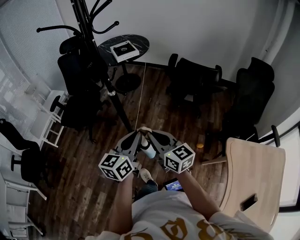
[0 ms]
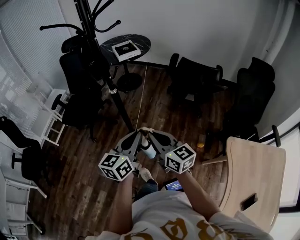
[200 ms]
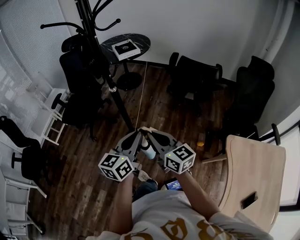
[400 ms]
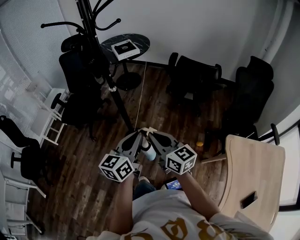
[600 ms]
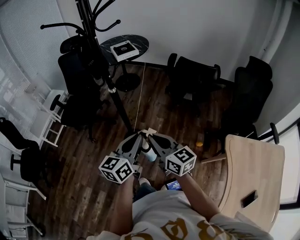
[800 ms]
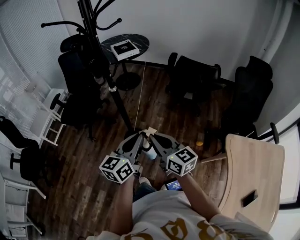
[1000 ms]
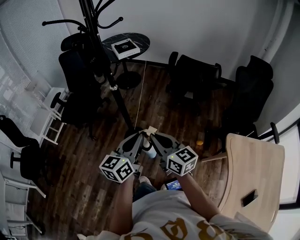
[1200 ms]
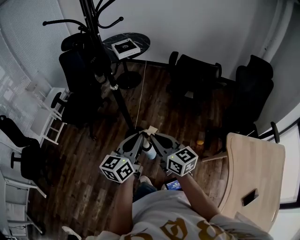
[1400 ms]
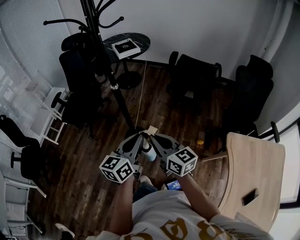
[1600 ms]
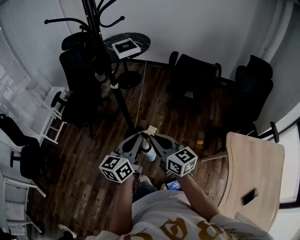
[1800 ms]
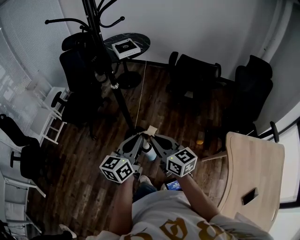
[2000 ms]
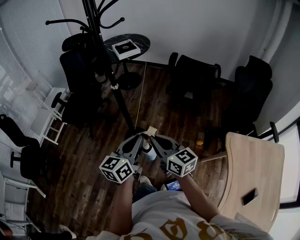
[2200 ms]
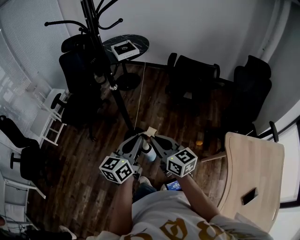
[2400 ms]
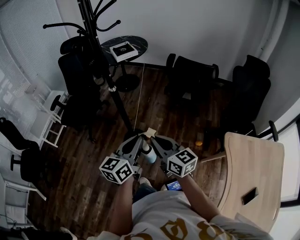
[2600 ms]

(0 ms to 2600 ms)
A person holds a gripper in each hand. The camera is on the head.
0 ms - 1200 ms: The grippers move only a little.
1200 ms - 2600 ms: There are only small adjustments of the grippers.

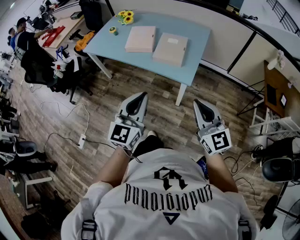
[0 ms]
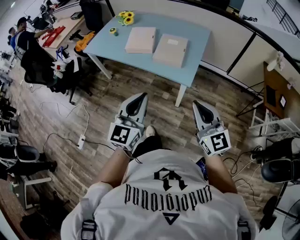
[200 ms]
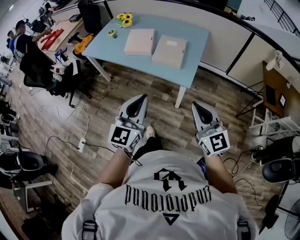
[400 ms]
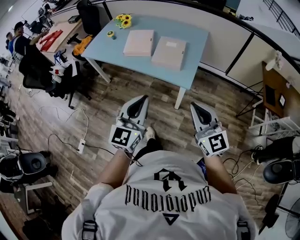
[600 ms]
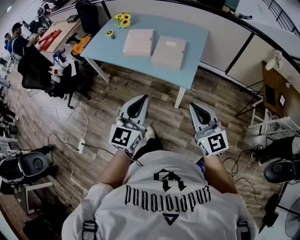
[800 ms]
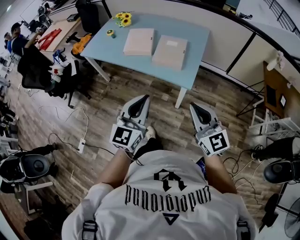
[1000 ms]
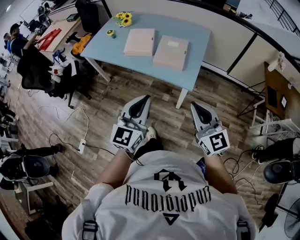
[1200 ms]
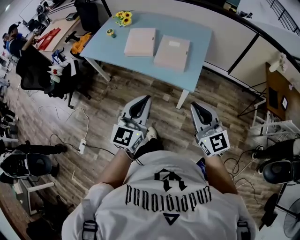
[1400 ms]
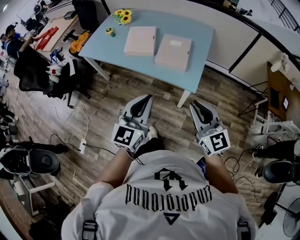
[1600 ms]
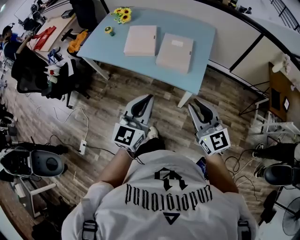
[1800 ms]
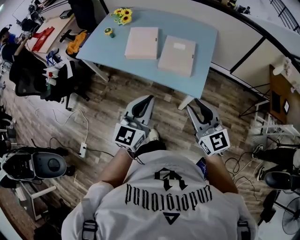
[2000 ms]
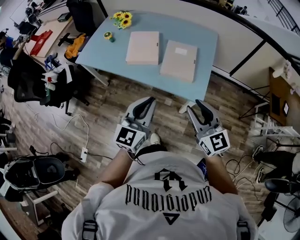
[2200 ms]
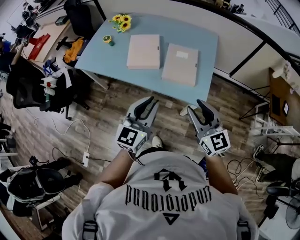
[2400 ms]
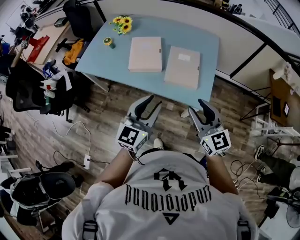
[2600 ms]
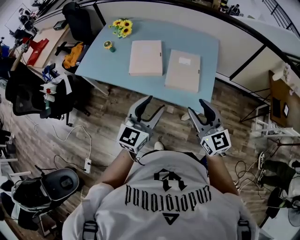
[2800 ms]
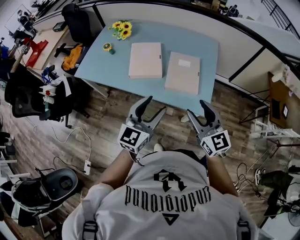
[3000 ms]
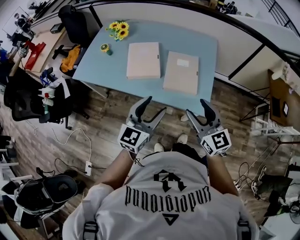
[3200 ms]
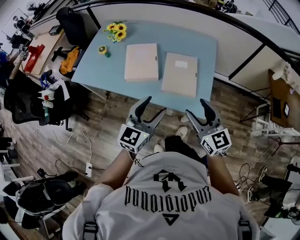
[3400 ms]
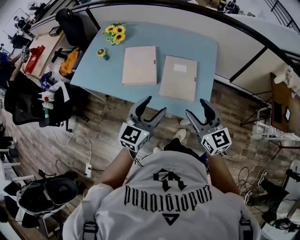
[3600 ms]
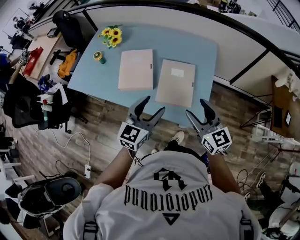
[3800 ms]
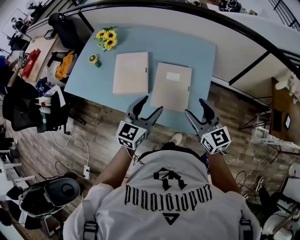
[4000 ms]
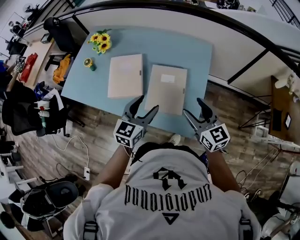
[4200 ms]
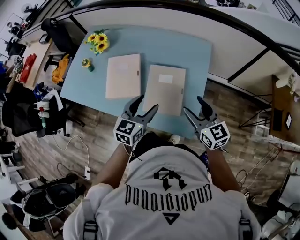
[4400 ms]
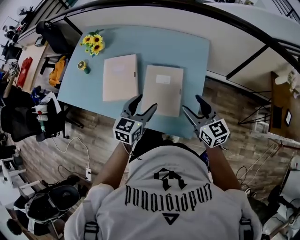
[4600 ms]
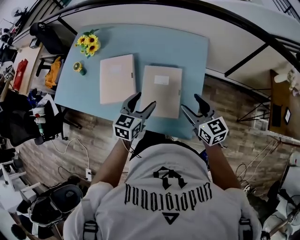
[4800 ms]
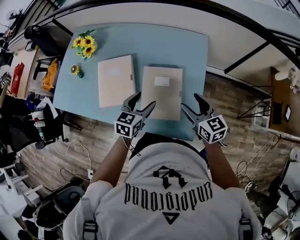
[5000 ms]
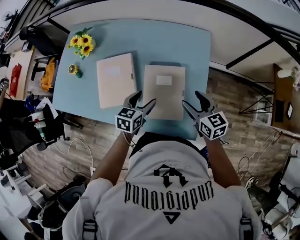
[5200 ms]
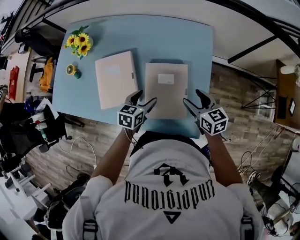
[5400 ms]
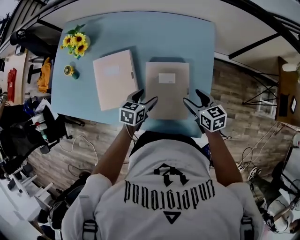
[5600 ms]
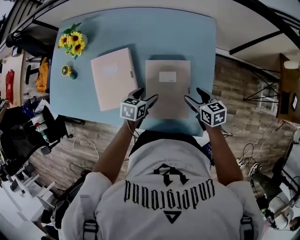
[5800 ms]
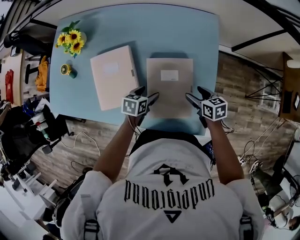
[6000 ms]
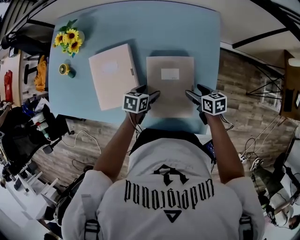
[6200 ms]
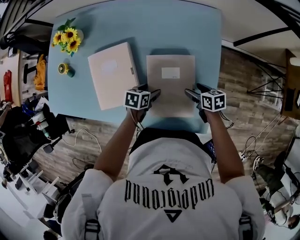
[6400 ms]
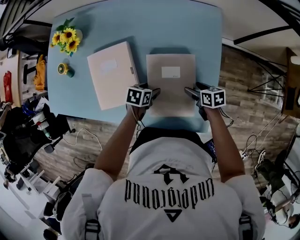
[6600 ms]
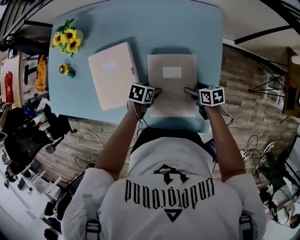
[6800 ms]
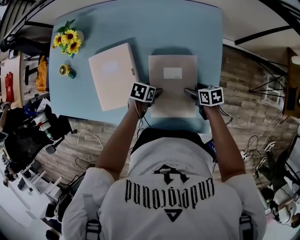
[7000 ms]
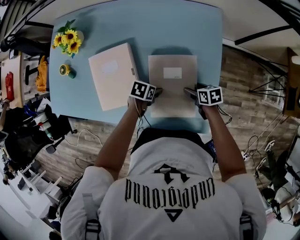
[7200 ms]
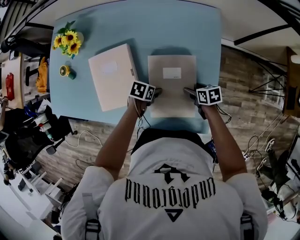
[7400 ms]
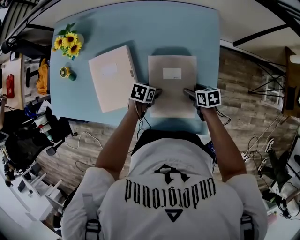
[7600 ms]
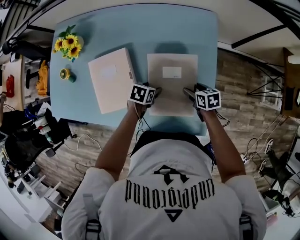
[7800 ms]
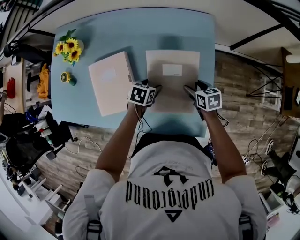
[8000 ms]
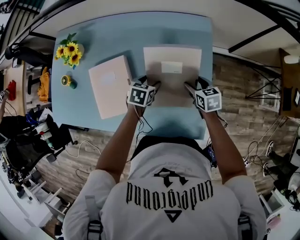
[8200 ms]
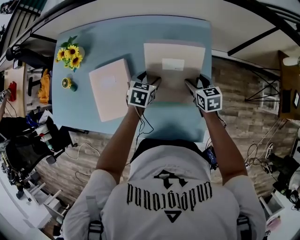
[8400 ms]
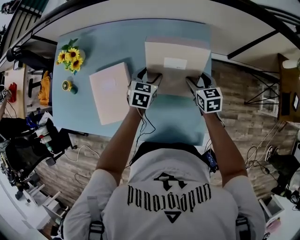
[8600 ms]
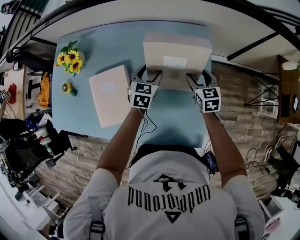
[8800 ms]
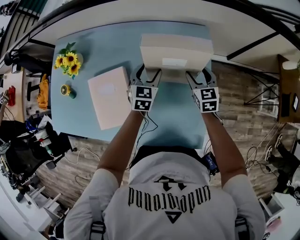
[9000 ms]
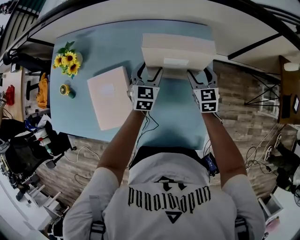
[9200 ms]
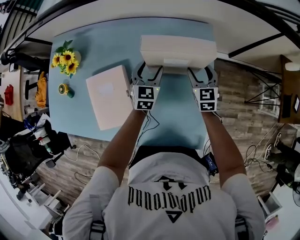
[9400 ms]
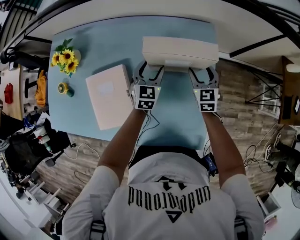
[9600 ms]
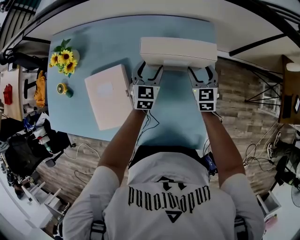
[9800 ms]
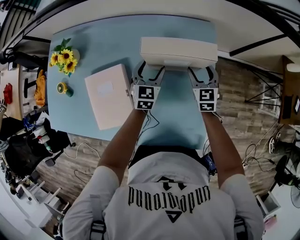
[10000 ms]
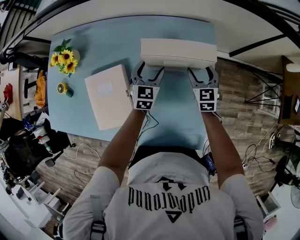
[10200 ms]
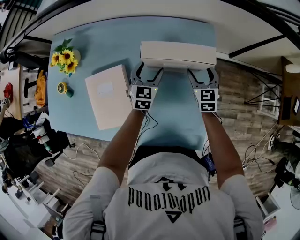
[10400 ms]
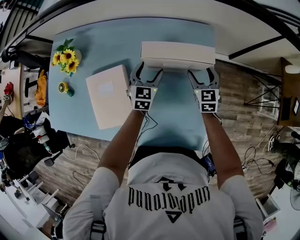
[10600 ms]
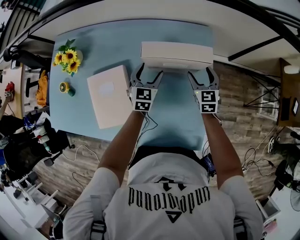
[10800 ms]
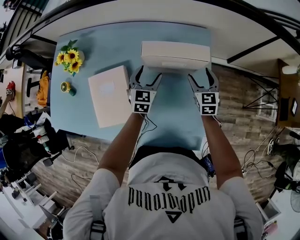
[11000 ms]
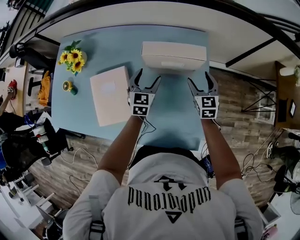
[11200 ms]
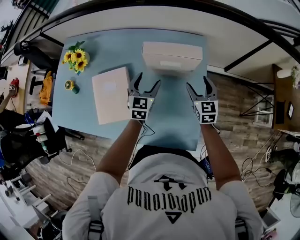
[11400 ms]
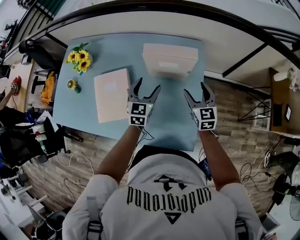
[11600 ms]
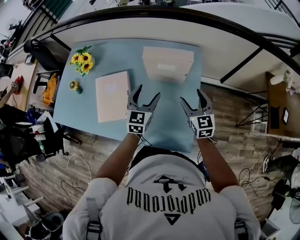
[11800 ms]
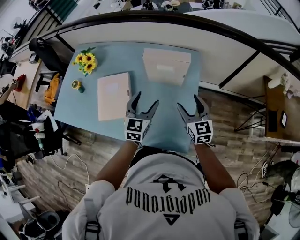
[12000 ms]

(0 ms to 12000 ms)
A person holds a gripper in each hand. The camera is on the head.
0 ms - 1600 ms: Both grippers travel together forward, about 10 cm.
1600 ms - 3000 ms: The two grippers go about 20 cm forward and to the left. The left gripper opens. The right gripper opens.
3000 ms - 4400 ms: The right gripper travels forward and to the right by approximately 25 cm, while the left gripper heads forward, to the right and downward, covering about 25 cm.
4400 ms - 6000 ms: The two grippers go approximately 30 cm downward and forward. The left gripper points its fingers some 30 degrees further downward; the right gripper angles its fingers downward, by roughly 30 degrees.
6000 ms - 7600 ms: The right gripper shifts some 5 cm downward.
7600 ms - 9000 ms: The left gripper changes place by about 25 cm, and angles its fingers upward, by some 30 degrees; the right gripper ends up roughly 25 cm from where it was, and swivels about 50 degrees.
9000 ms - 10400 ms: The grippers make only small movements.
10400 ms - 12000 ms: The two grippers go some 25 cm backward and upward.

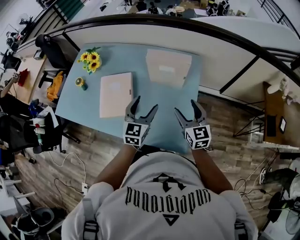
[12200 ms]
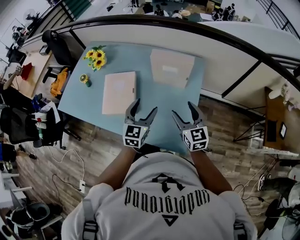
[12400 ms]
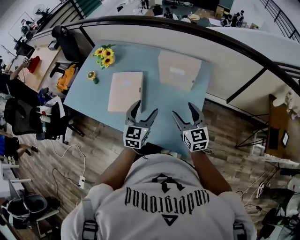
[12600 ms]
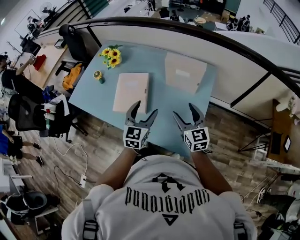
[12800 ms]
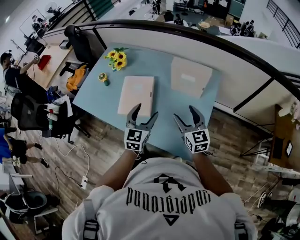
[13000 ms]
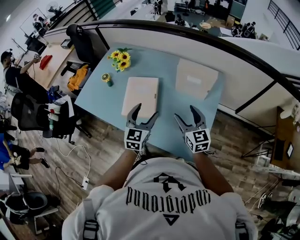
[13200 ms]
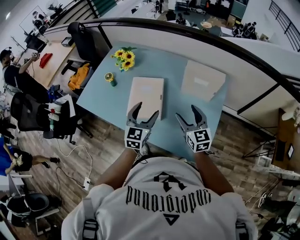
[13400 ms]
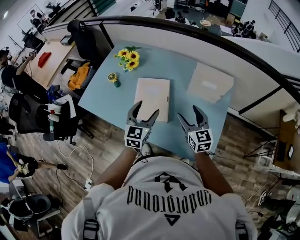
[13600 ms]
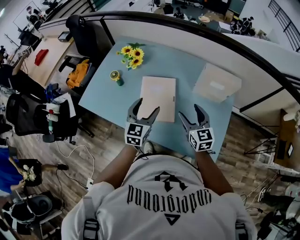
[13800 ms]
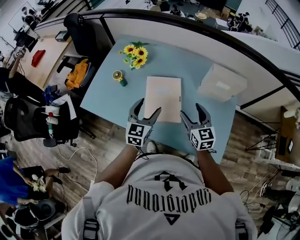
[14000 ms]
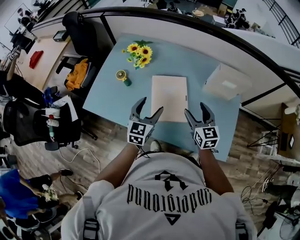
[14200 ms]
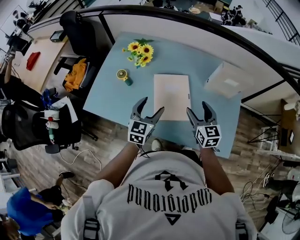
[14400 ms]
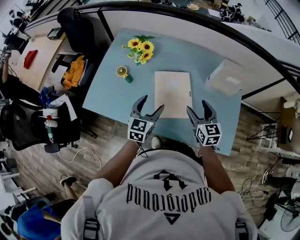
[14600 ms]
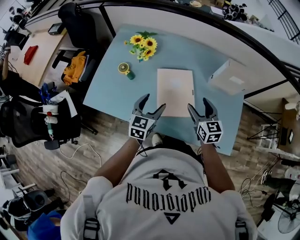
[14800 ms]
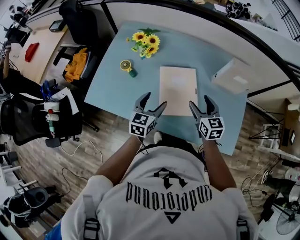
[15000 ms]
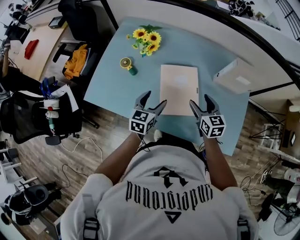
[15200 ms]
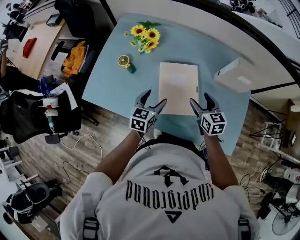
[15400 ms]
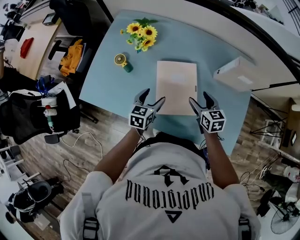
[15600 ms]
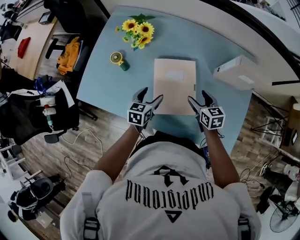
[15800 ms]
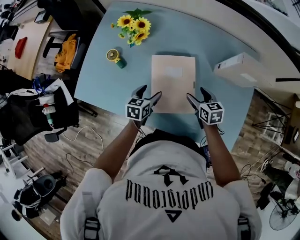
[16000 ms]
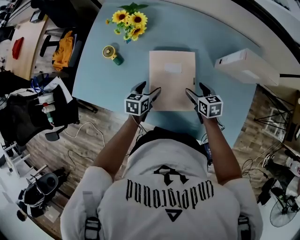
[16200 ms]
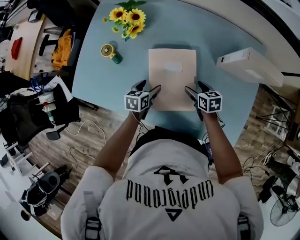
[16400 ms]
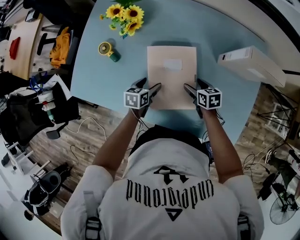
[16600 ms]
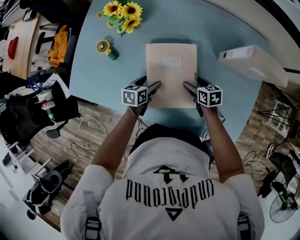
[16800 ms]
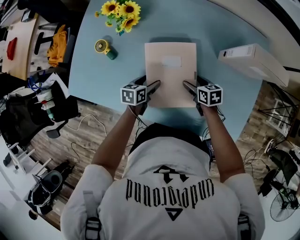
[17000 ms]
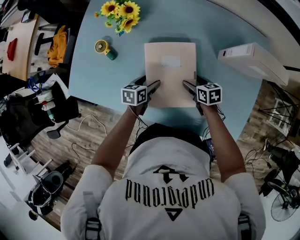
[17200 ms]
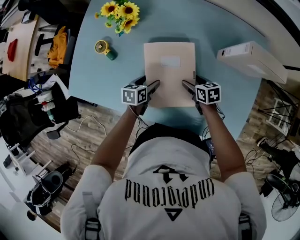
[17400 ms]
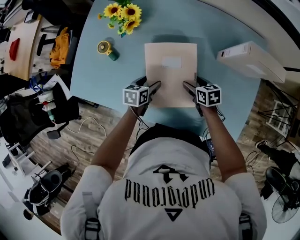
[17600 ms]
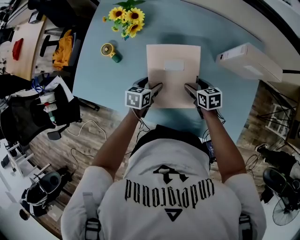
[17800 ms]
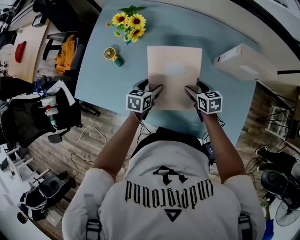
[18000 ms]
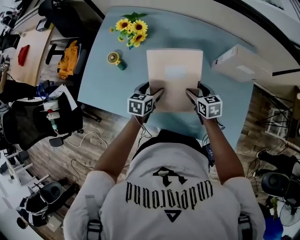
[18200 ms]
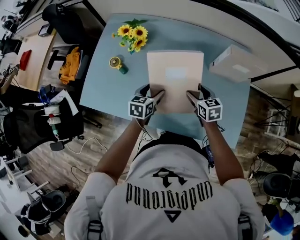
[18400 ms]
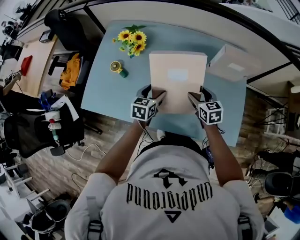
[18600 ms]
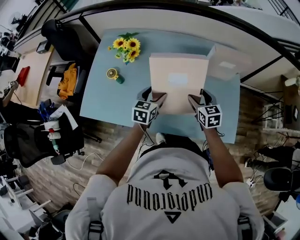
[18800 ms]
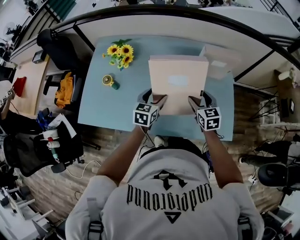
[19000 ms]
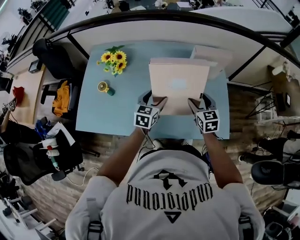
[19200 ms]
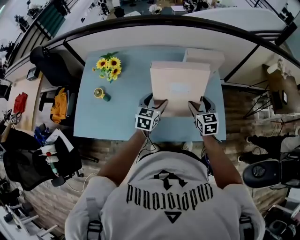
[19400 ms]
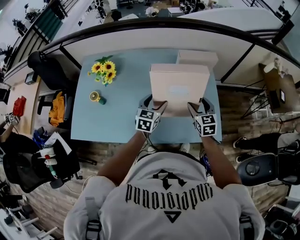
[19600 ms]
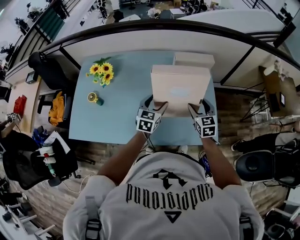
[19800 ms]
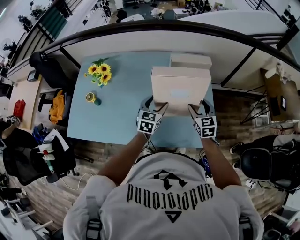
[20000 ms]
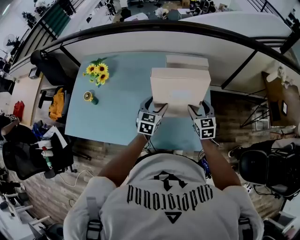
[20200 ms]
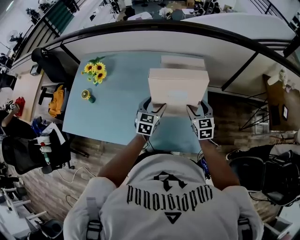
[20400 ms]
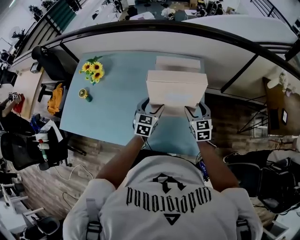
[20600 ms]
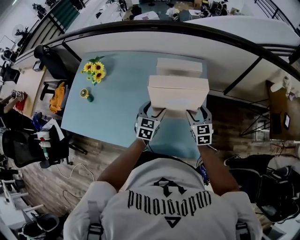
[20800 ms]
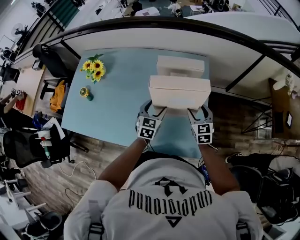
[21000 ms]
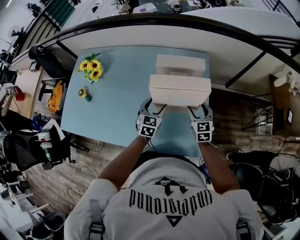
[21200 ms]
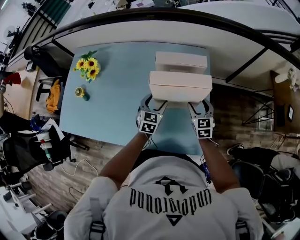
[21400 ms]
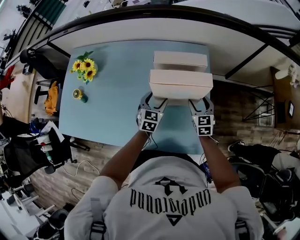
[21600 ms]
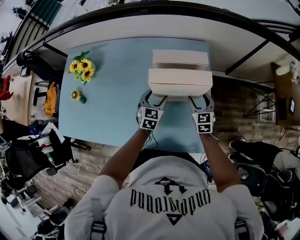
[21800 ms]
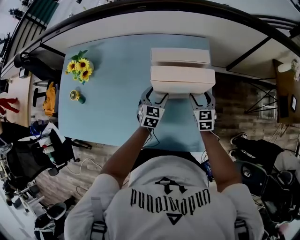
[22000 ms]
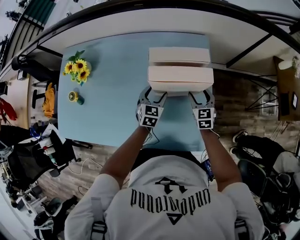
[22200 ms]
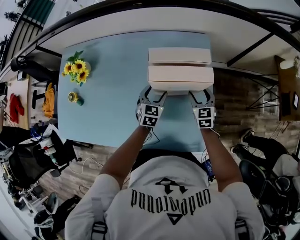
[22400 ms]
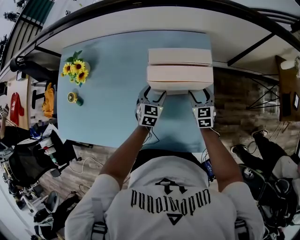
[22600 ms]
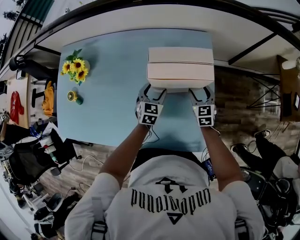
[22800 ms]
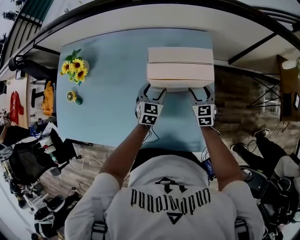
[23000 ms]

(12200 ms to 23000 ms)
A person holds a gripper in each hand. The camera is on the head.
12200 ms - 13800 ms: Both grippers move to the left, approximately 25 cm.
13800 ms - 15200 ms: The left gripper goes roughly 15 cm to the left and downward, and swivels about 20 degrees. Meanwhile the right gripper moves to the left, downward and forward, about 15 cm.
15200 ms - 16800 ms: The two grippers go approximately 20 cm downward. The left gripper changes its angle by about 30 degrees. The right gripper rotates roughly 40 degrees.
16800 ms - 18400 ms: The two grippers go approximately 15 cm upward. The right gripper swivels roughly 20 degrees.
18400 ms - 20000 ms: The left gripper shifts some 25 cm to the right and upward, and turns by about 30 degrees. Meanwhile the right gripper is displaced to the right by some 25 cm, and rotates approximately 30 degrees.
20000 ms - 21400 ms: The right gripper shifts approximately 15 cm to the right, forward and downward, while the left gripper travels to the right, downward and forward by roughly 15 cm.
21400 ms - 23000 ms: Both grippers travel together forward and downward, approximately 10 cm.
